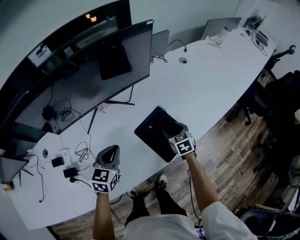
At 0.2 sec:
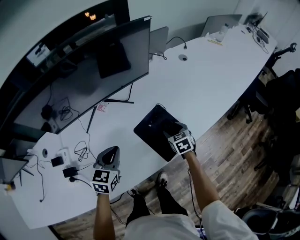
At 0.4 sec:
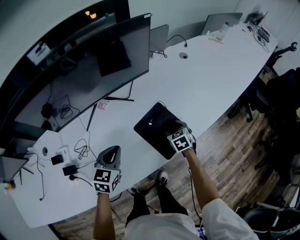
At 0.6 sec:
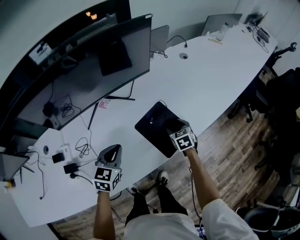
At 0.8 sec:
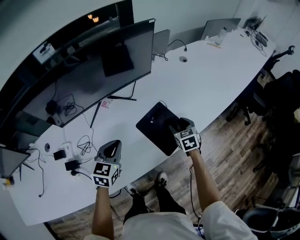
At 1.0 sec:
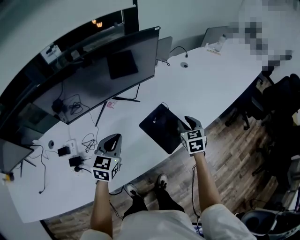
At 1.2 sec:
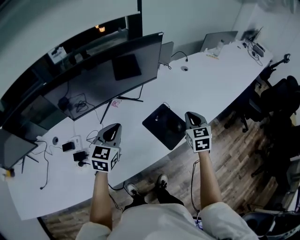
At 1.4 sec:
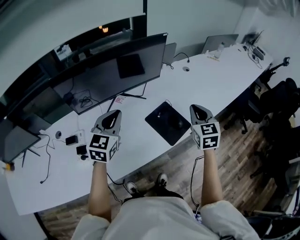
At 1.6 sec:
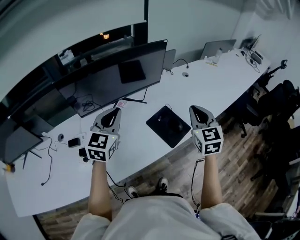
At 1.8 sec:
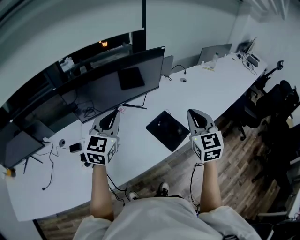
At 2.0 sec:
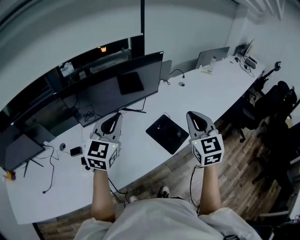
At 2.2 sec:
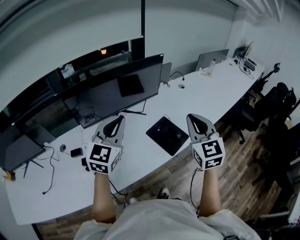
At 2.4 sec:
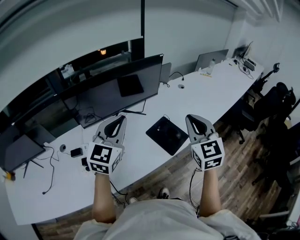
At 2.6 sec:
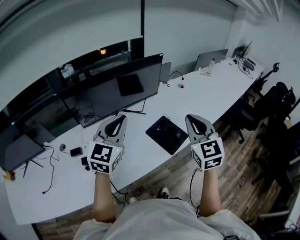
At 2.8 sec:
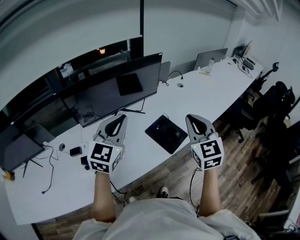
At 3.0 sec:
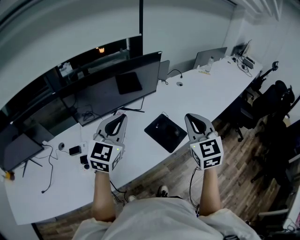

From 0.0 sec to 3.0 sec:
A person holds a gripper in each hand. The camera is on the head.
From 0.0 sec to 1.6 sec: The left gripper moves upward, approximately 25 cm, and swivels about 20 degrees. Meanwhile the right gripper travels upward by roughly 35 cm, tips its fingers upward by some 30 degrees, and closes up.
From 1.6 sec to 3.0 sec: The left gripper heads upward, covering about 5 cm. Meanwhile the right gripper moves backward and upward, some 10 cm.

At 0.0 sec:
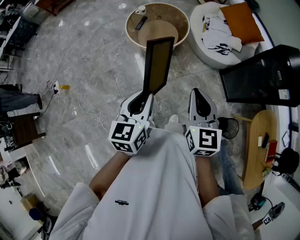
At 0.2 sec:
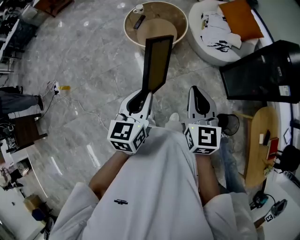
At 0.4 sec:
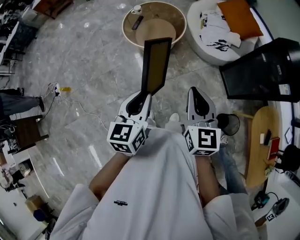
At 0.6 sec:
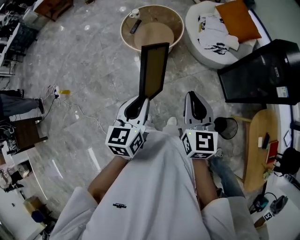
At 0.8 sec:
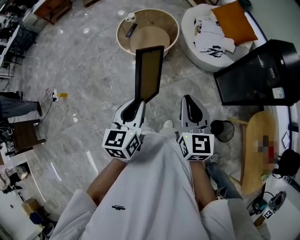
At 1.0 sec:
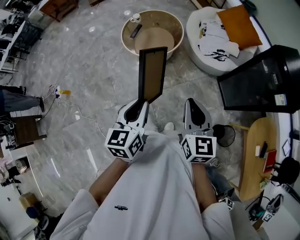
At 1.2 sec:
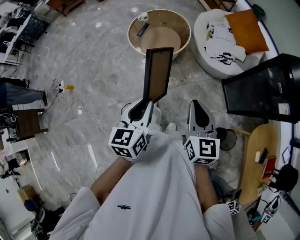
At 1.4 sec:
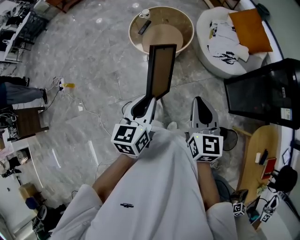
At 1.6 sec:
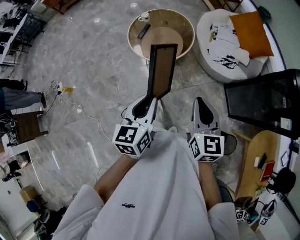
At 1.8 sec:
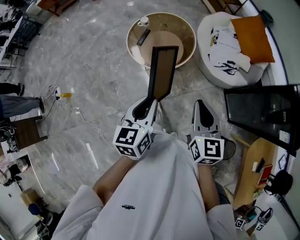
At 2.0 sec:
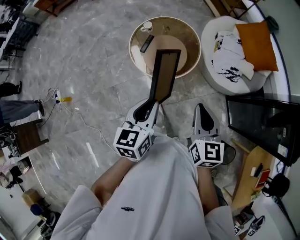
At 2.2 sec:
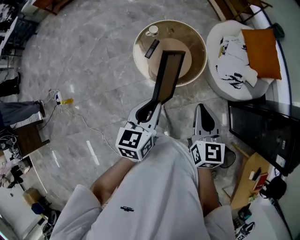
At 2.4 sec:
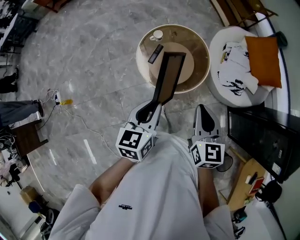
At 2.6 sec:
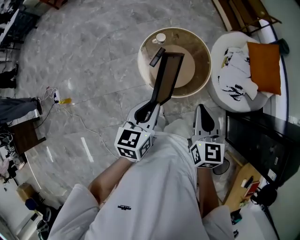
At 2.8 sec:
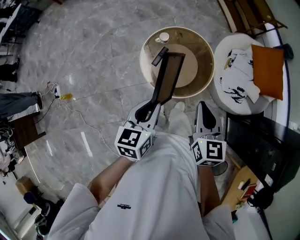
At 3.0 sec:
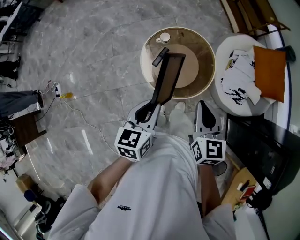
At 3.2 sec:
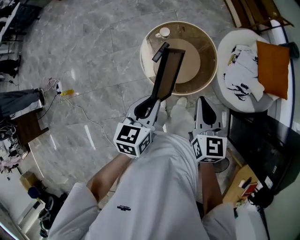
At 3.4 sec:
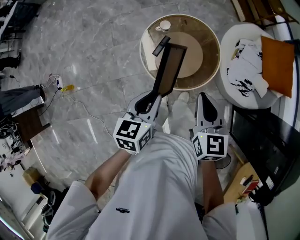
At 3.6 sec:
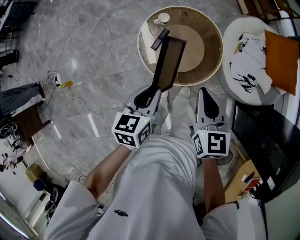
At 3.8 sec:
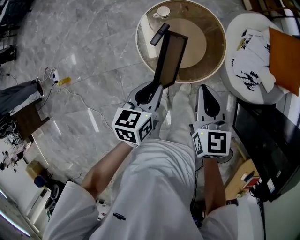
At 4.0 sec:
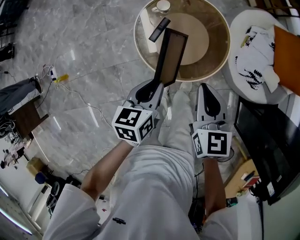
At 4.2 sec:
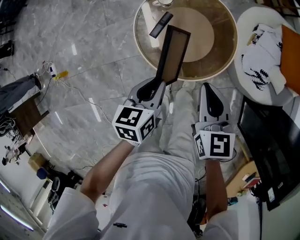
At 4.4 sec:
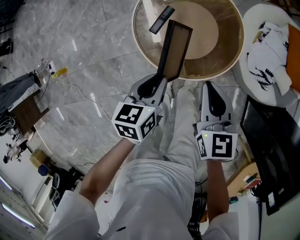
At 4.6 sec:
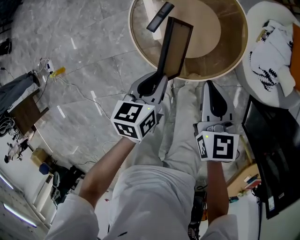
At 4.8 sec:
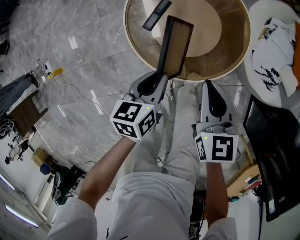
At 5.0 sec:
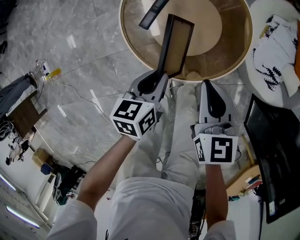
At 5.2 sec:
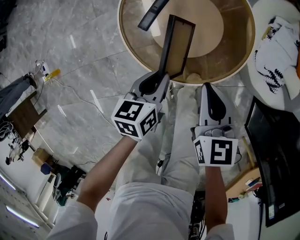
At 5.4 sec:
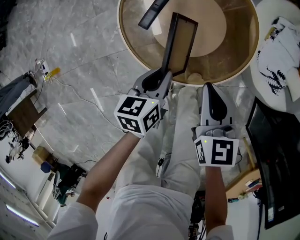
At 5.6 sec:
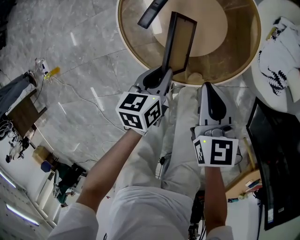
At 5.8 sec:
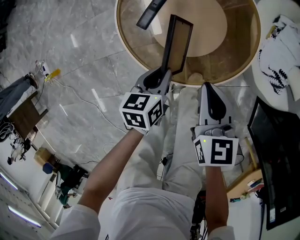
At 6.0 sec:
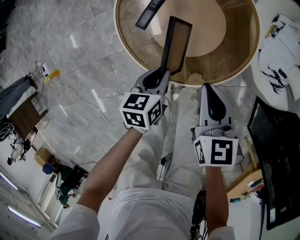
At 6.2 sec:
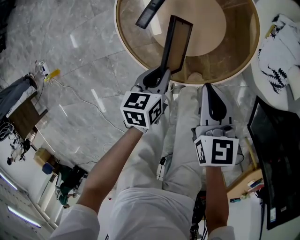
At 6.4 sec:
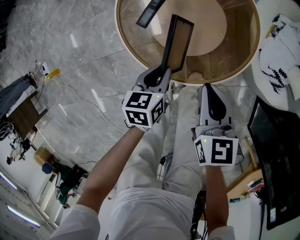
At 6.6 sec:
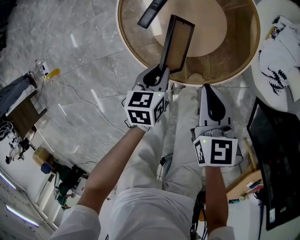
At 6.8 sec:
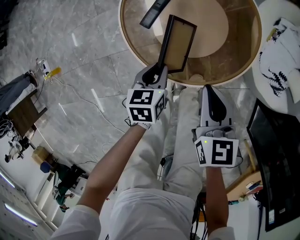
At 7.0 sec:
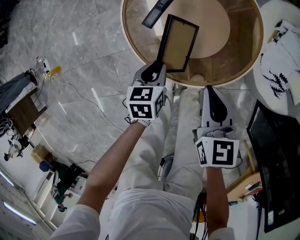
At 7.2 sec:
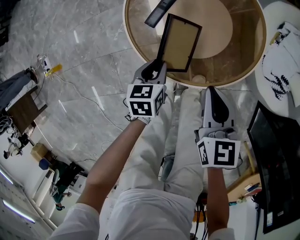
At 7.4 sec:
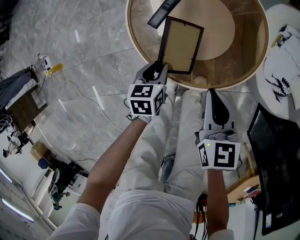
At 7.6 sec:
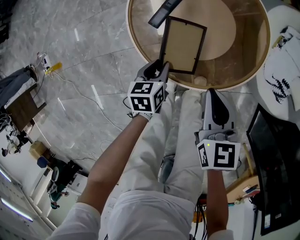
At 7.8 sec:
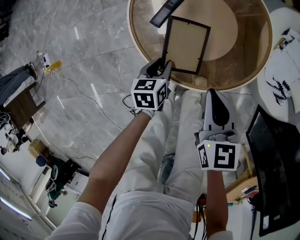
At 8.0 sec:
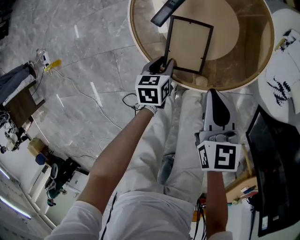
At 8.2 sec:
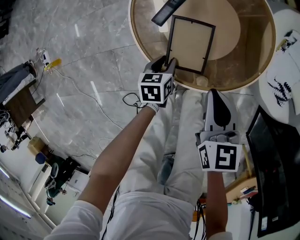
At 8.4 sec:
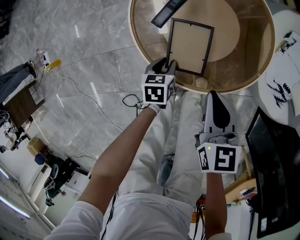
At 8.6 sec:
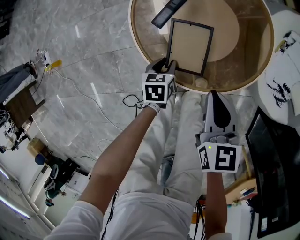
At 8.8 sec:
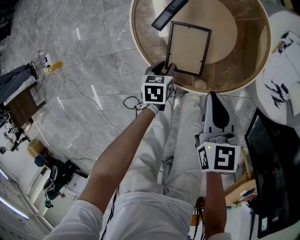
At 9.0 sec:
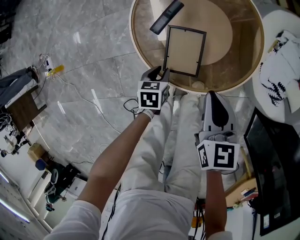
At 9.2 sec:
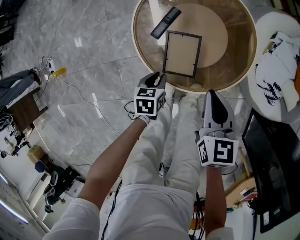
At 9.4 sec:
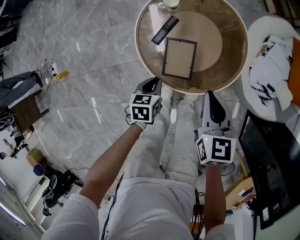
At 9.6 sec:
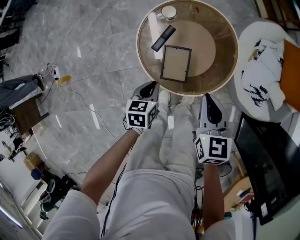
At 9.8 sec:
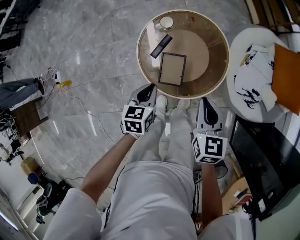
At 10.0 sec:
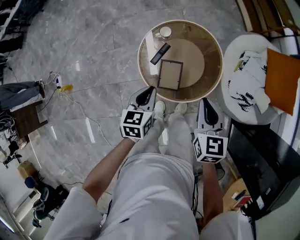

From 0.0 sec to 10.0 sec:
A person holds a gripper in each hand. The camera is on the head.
From 0.0 sec to 1.4 sec: The two grippers go approximately 10 cm to the right and forward.
From 1.4 sec to 2.8 sec: The two grippers travel together, forward and to the left, approximately 50 cm.
From 2.8 sec to 4.2 sec: Both grippers move downward, about 20 cm.
From 4.2 sec to 5.8 sec: Both grippers move downward, approximately 20 cm.
From 5.8 sec to 7.2 sec: The left gripper shifts by roughly 5 cm.
From 7.2 sec to 8.6 sec: The left gripper moves downward, roughly 10 cm.
From 8.6 sec to 10.0 sec: The grippers both shift upward by about 35 cm. The left gripper swivels about 20 degrees, and closes its fingers.

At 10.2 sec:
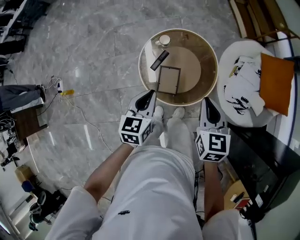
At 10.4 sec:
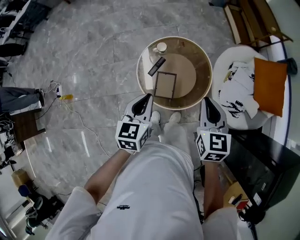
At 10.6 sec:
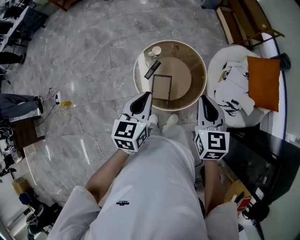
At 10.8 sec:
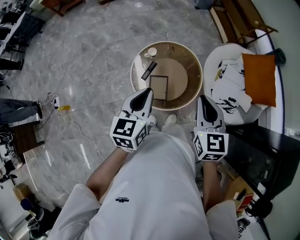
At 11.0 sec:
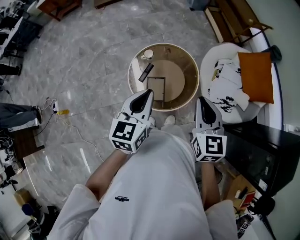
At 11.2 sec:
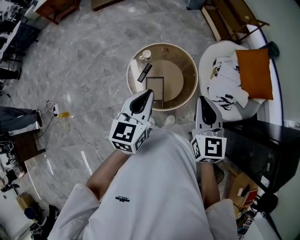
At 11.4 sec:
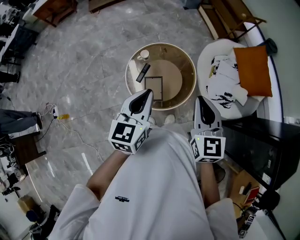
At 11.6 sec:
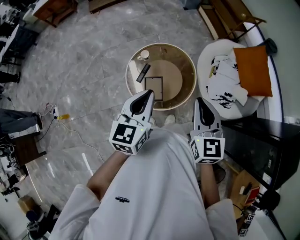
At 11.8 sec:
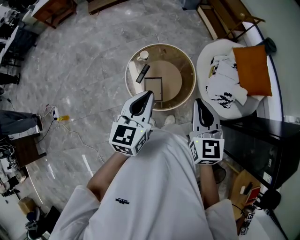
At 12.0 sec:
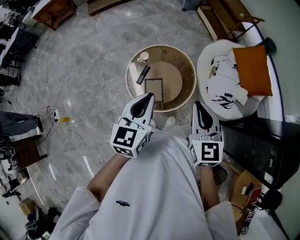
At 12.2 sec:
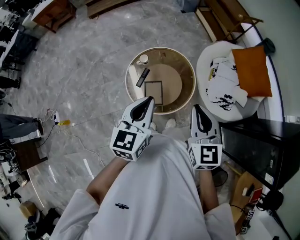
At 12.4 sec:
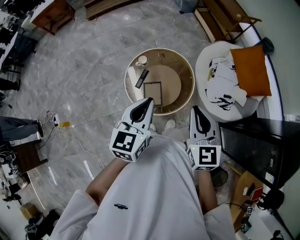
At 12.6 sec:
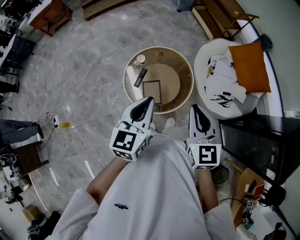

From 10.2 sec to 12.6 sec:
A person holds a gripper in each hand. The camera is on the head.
From 10.2 sec to 11.4 sec: The left gripper moves upward and to the right, about 20 cm. Meanwhile the right gripper travels upward and backward by about 15 cm.
From 11.4 sec to 12.6 sec: The grippers make only small movements.

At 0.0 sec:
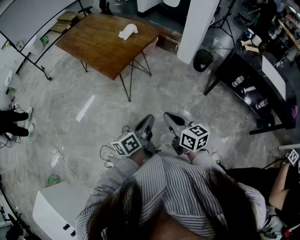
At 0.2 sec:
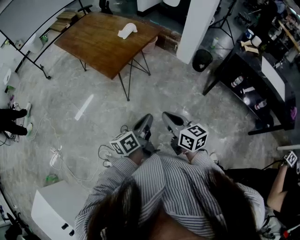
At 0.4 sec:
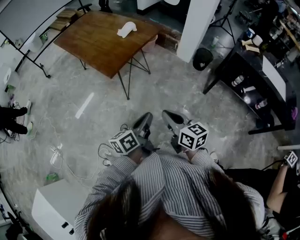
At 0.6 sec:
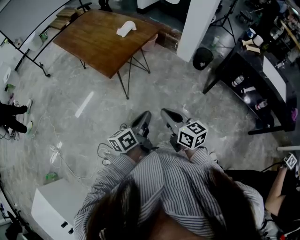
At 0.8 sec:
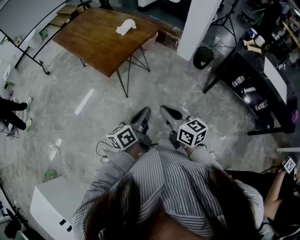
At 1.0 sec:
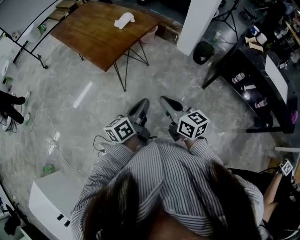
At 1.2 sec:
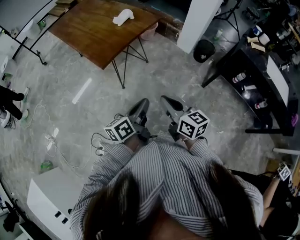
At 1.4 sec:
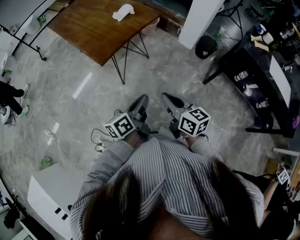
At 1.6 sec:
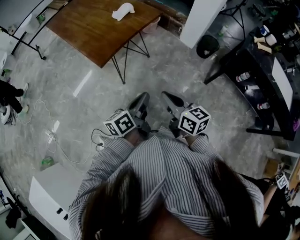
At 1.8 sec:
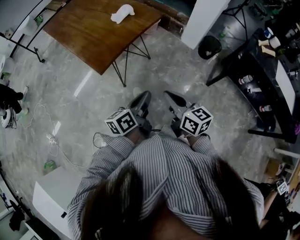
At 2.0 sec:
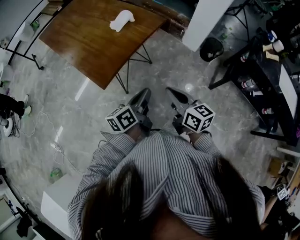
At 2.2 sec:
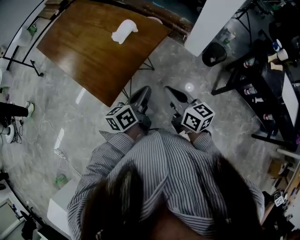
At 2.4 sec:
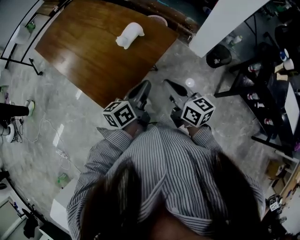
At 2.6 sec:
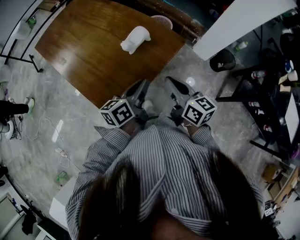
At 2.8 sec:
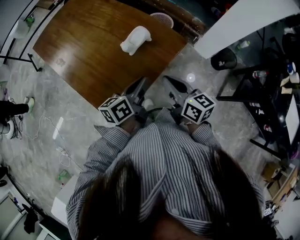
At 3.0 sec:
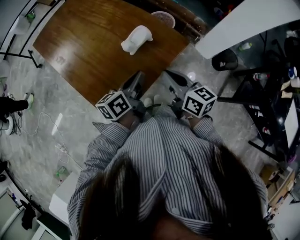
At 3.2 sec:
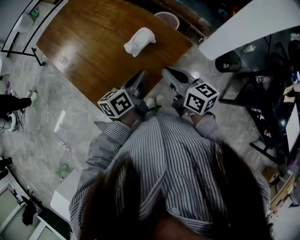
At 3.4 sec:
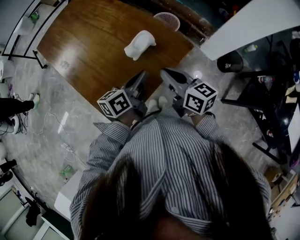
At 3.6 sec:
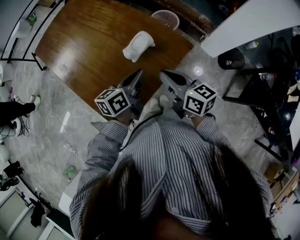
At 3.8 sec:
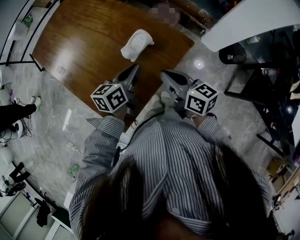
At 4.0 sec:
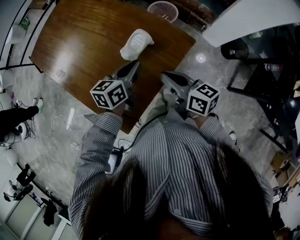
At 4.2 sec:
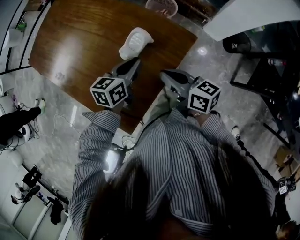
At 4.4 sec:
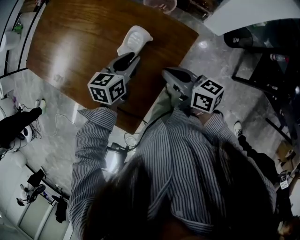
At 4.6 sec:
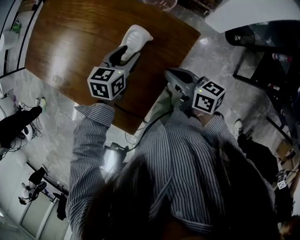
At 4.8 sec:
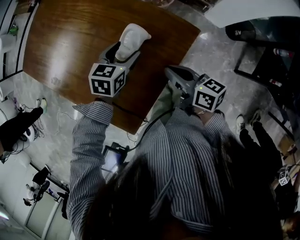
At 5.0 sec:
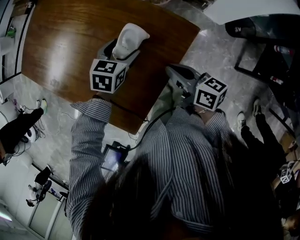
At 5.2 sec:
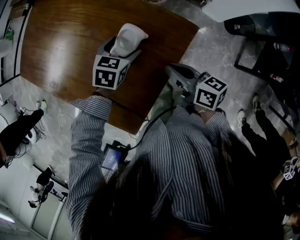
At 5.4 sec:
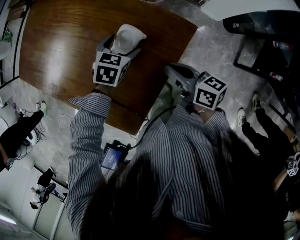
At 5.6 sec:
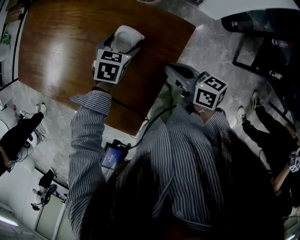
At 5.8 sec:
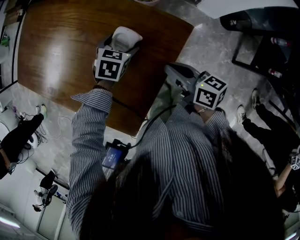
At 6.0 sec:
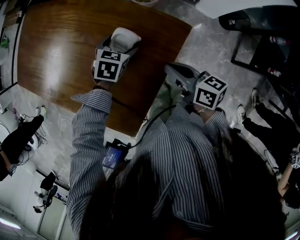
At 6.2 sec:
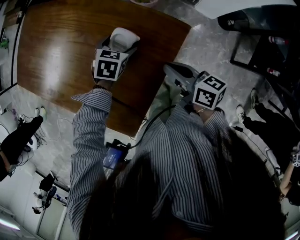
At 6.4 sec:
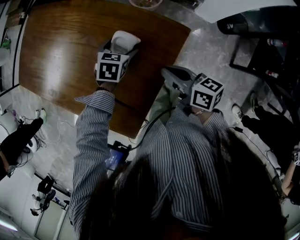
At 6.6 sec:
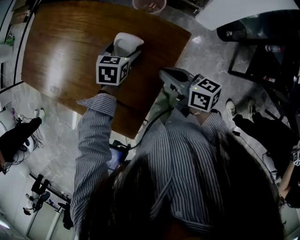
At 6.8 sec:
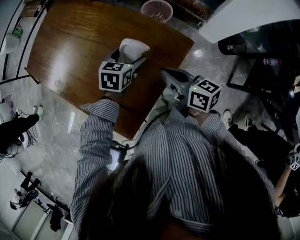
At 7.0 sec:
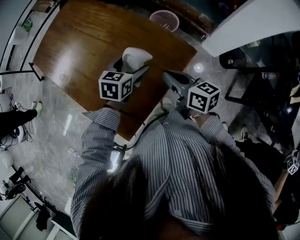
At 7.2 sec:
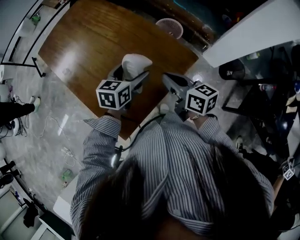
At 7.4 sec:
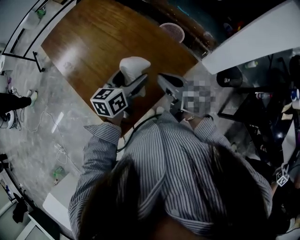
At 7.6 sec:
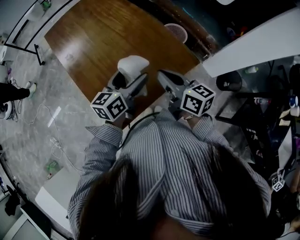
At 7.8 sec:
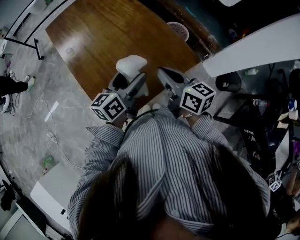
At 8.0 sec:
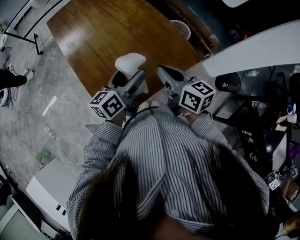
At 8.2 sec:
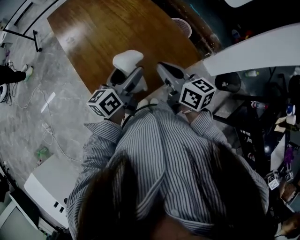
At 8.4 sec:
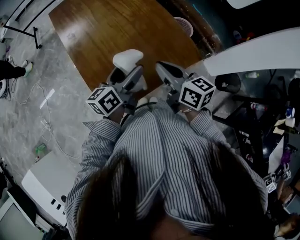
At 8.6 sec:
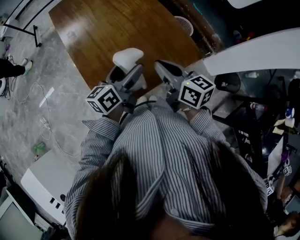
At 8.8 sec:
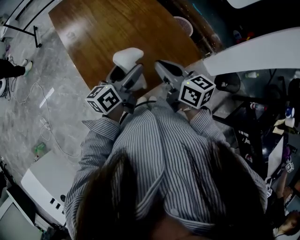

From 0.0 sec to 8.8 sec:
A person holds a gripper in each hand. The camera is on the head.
From 0.0 sec to 1.4 sec: The right gripper goes approximately 10 cm forward and to the right, while the left gripper heads forward, covering roughly 10 cm.
From 1.4 sec to 3.0 sec: The pair of grippers is taken forward, roughly 50 cm.
From 3.0 sec to 4.4 sec: The left gripper shifts approximately 15 cm forward and downward, and turns by approximately 40 degrees, while the right gripper moves forward and downward, some 10 cm.
From 4.4 sec to 5.8 sec: The left gripper goes approximately 15 cm downward and forward, changes its angle by about 30 degrees, and opens; the right gripper is displaced downward by some 5 cm.
From 5.8 sec to 7.4 sec: The right gripper goes about 15 cm upward and to the left, and rotates some 20 degrees. The left gripper is displaced upward and backward by some 25 cm, and angles its fingers upward, by approximately 40 degrees.
From 7.4 sec to 8.8 sec: The left gripper travels to the left by approximately 5 cm, and rotates some 30 degrees.
